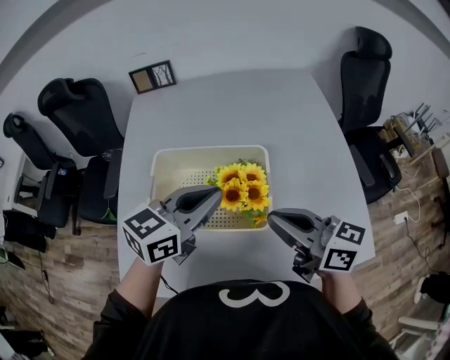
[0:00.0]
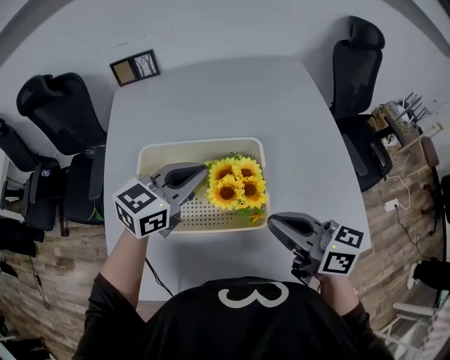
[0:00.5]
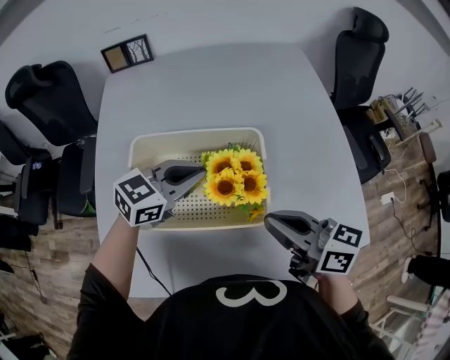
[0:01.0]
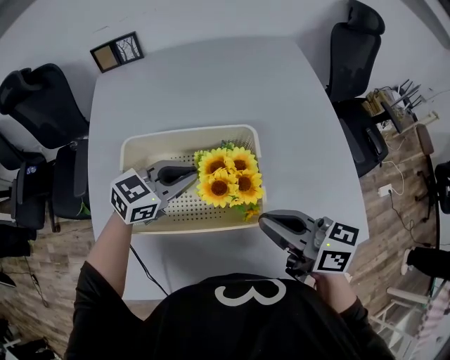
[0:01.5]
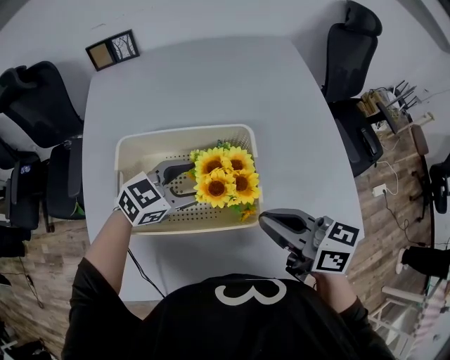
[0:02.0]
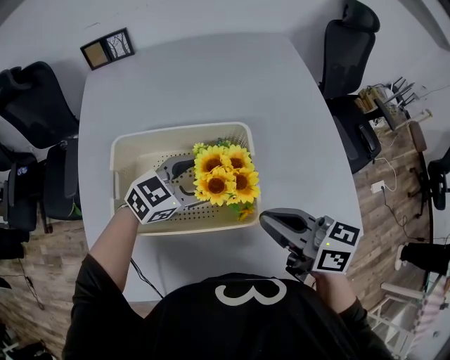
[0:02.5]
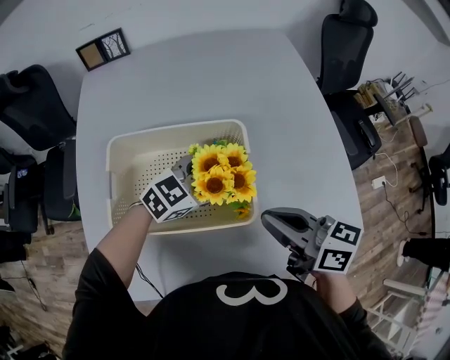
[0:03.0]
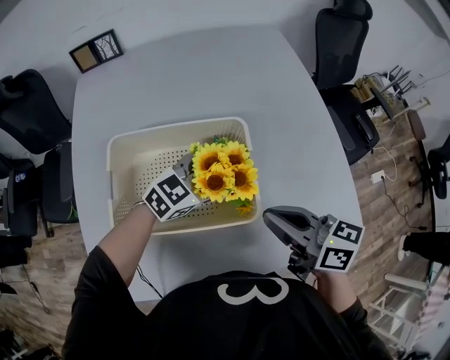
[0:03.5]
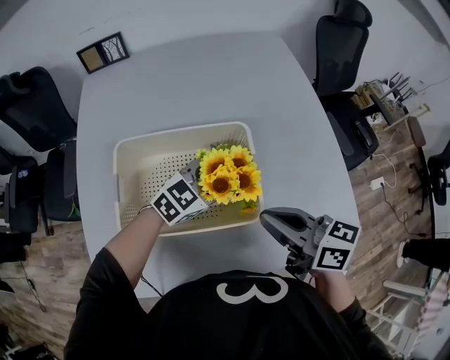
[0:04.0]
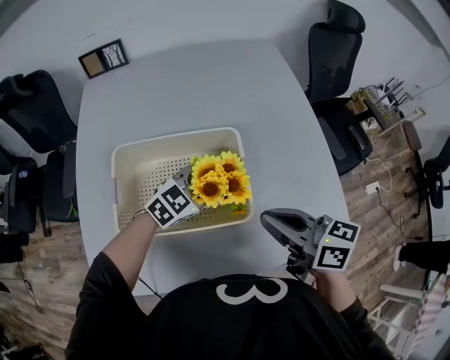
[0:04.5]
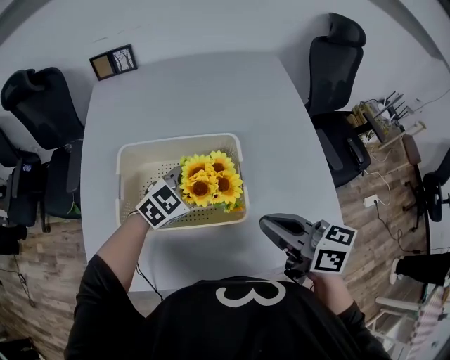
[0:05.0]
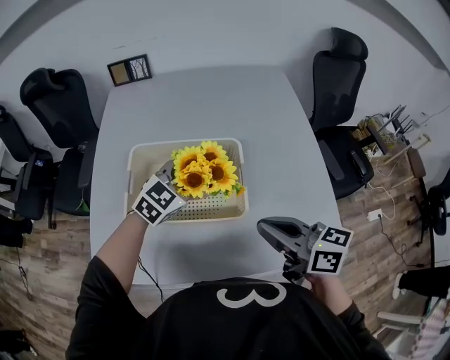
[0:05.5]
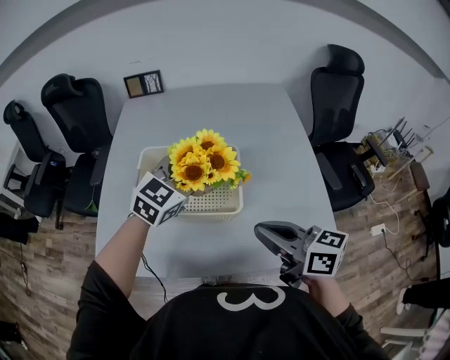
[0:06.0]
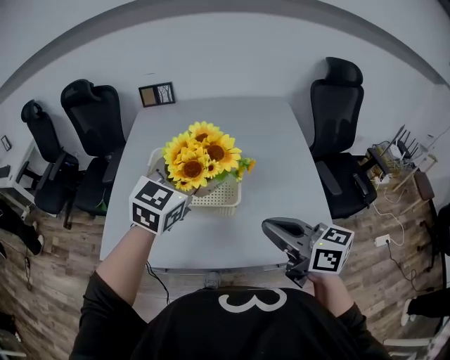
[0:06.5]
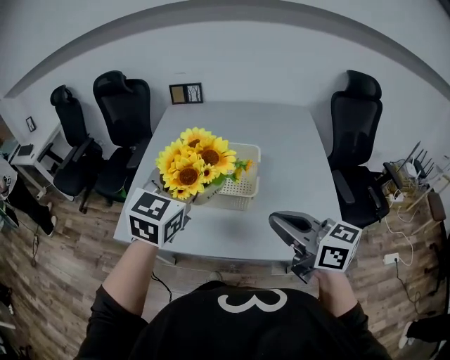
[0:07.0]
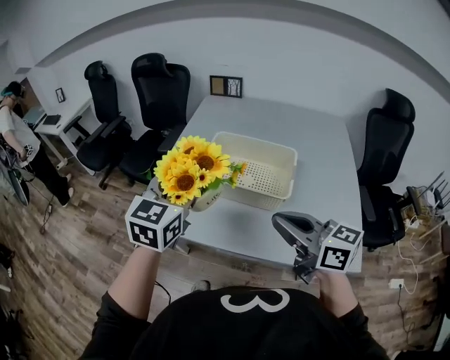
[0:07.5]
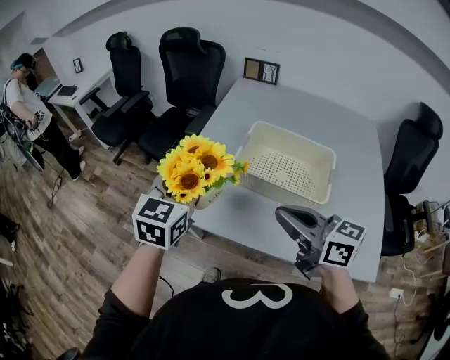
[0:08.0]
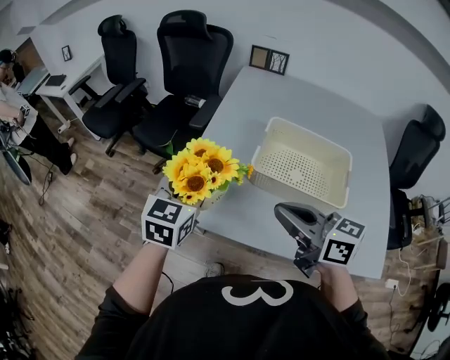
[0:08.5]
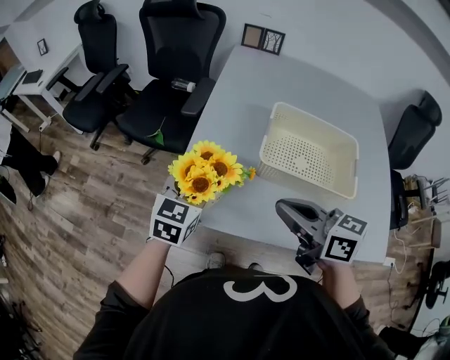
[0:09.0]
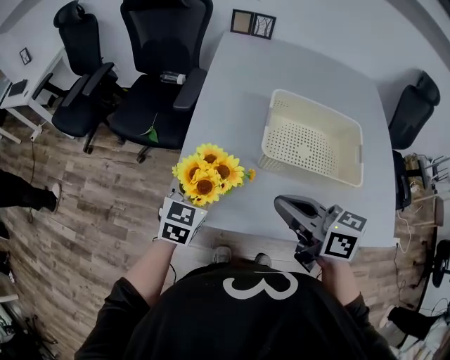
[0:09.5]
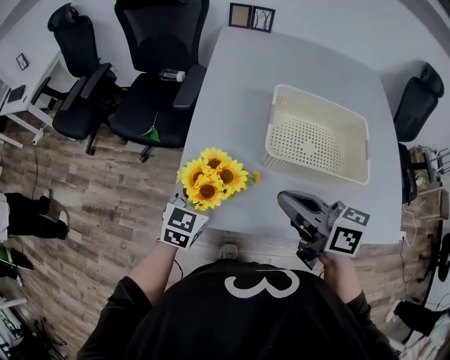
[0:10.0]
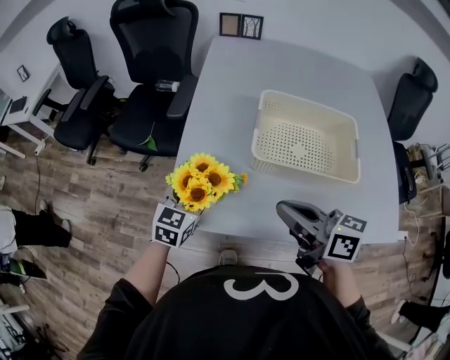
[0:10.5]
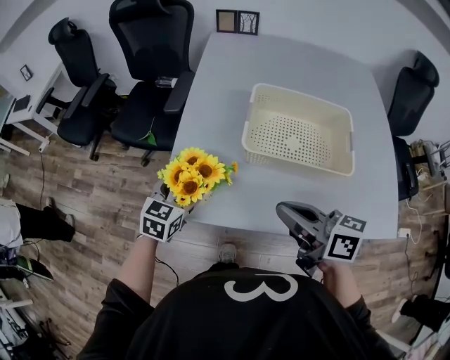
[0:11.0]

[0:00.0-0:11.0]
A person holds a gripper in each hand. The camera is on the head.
0:00.0 to 0:02.0: The left gripper is displaced downward by approximately 15 cm, swivels roughly 30 degrees, and opens, while the right gripper travels downward by approximately 5 cm.
0:02.0 to 0:03.5: The left gripper is displaced to the right by roughly 5 cm.
0:03.5 to 0:05.5: The left gripper travels upward by approximately 10 cm, rotates some 20 degrees, and closes up, while the right gripper is displaced upward and backward by approximately 10 cm.
0:05.5 to 0:07.5: The right gripper moves approximately 15 cm, and rotates some 20 degrees. The left gripper moves roughly 35 cm, and swivels approximately 50 degrees.
0:07.5 to 0:09.0: The left gripper heads downward, to the left and forward, covering roughly 30 cm; the right gripper moves to the left and forward, approximately 25 cm.
0:09.0 to 0:11.0: The left gripper shifts about 10 cm downward, and opens; the right gripper shifts by about 5 cm.

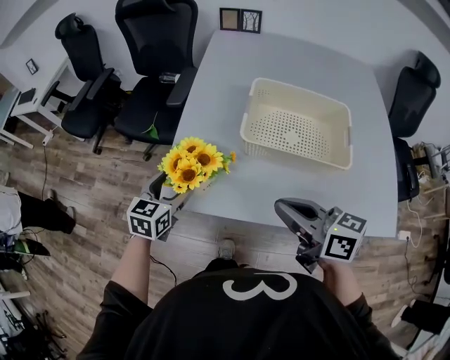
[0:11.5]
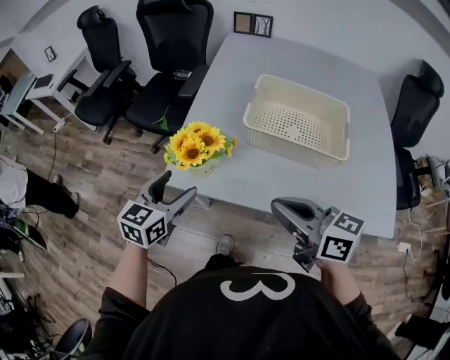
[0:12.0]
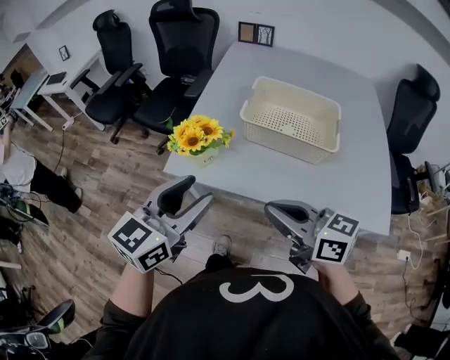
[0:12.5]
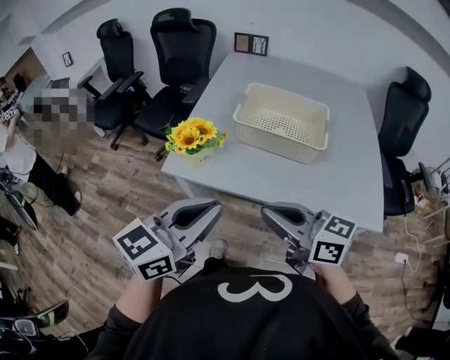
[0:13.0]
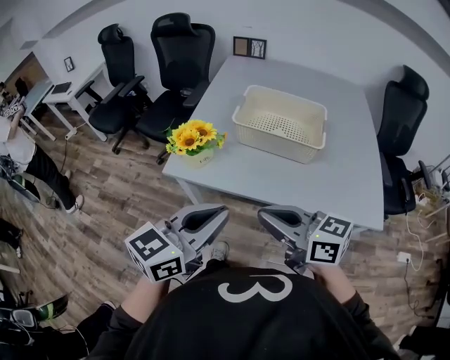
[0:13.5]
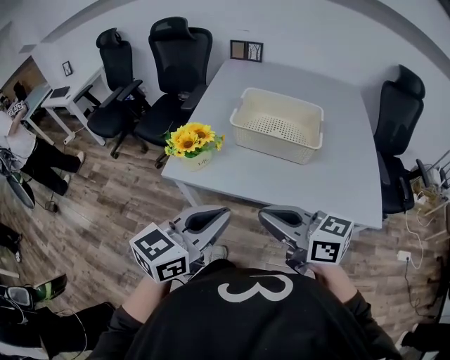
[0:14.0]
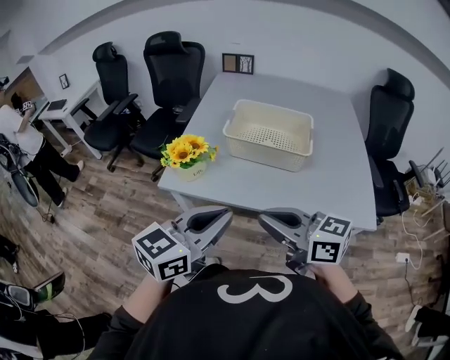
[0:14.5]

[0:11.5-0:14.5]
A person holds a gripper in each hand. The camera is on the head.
0:11.5 to 0:13.0: The right gripper travels backward by approximately 15 cm. The left gripper shifts some 40 cm backward, upward and to the right, changes its angle by some 30 degrees, and closes up.
0:13.0 to 0:14.5: There are only small adjustments of the grippers.

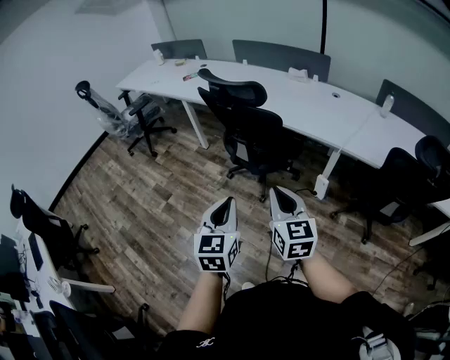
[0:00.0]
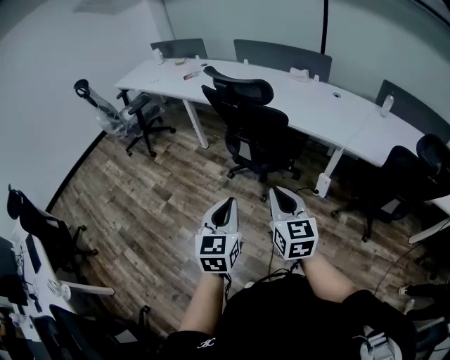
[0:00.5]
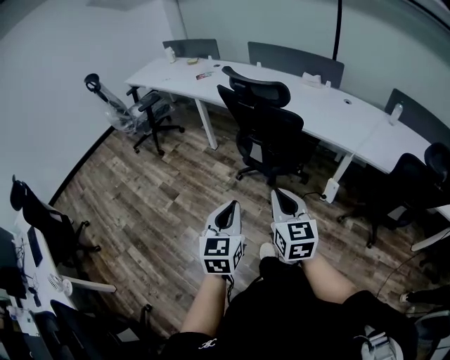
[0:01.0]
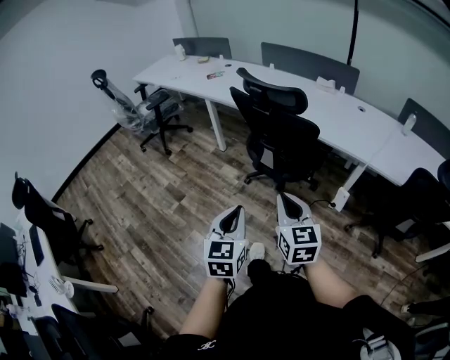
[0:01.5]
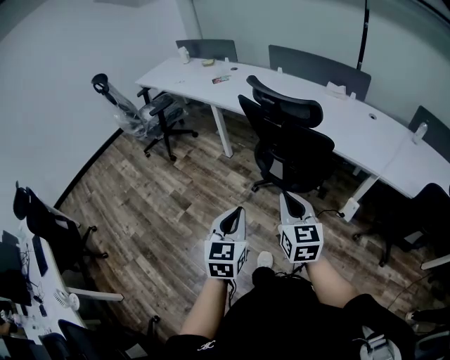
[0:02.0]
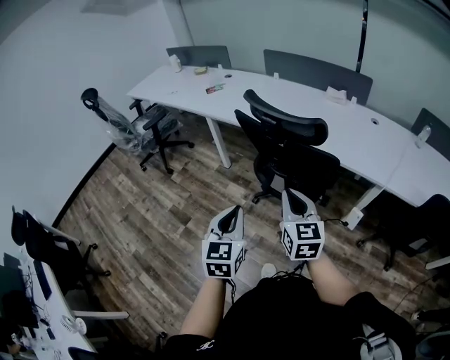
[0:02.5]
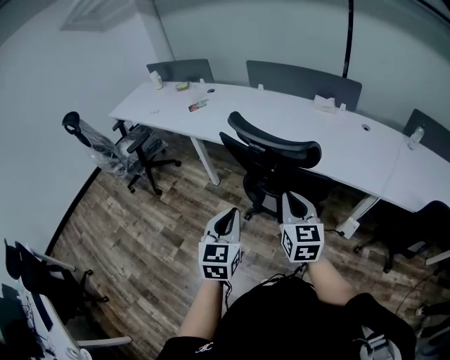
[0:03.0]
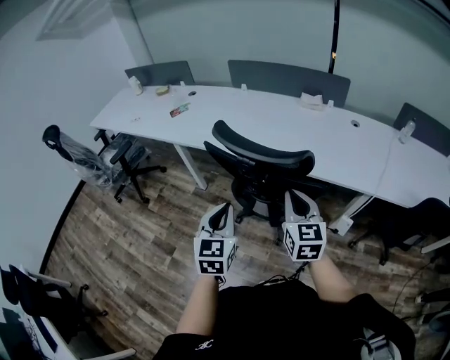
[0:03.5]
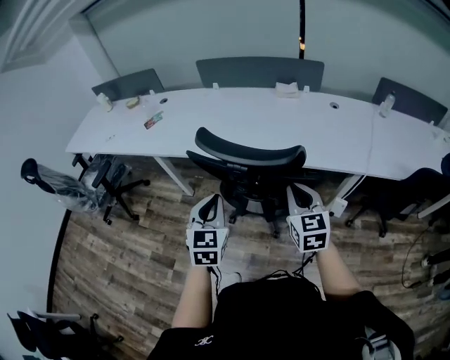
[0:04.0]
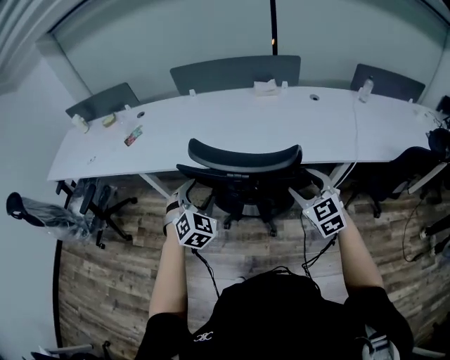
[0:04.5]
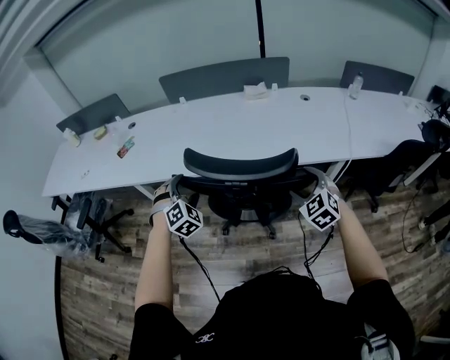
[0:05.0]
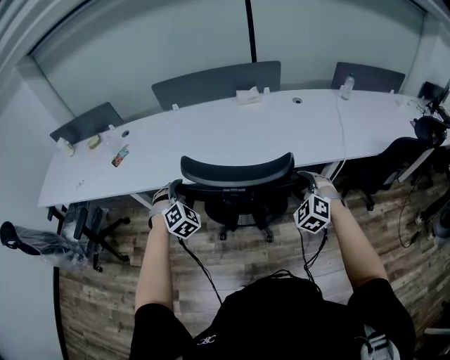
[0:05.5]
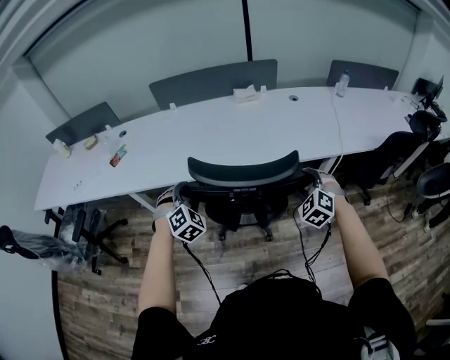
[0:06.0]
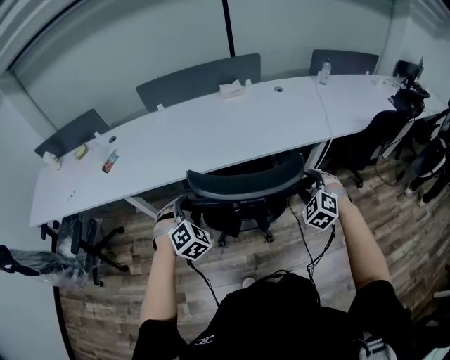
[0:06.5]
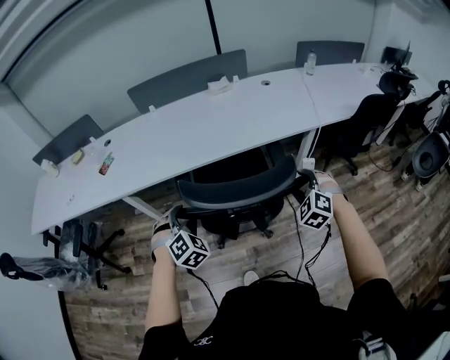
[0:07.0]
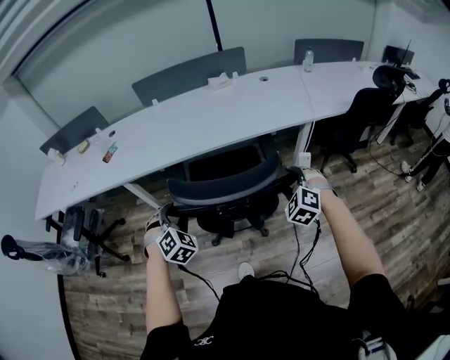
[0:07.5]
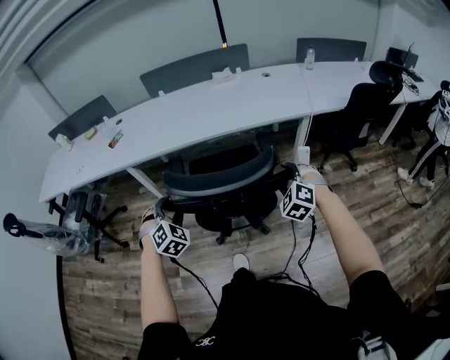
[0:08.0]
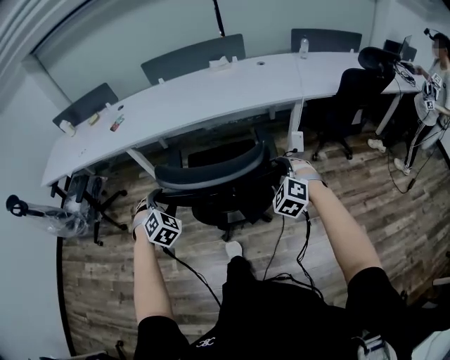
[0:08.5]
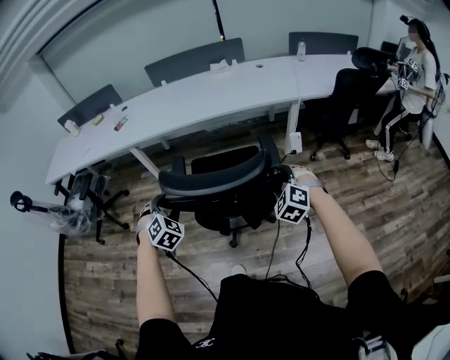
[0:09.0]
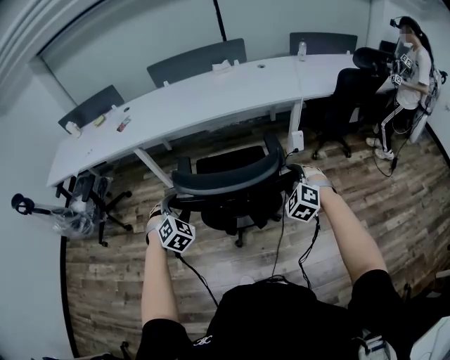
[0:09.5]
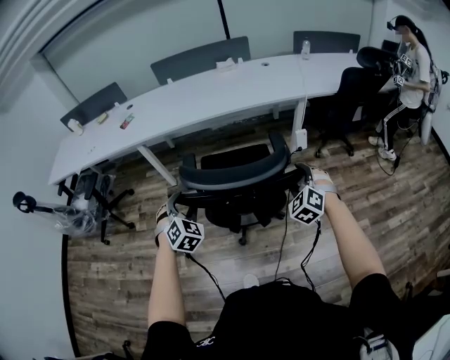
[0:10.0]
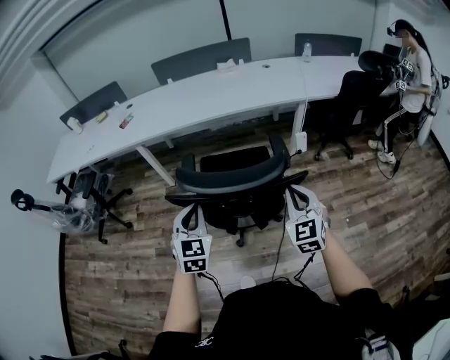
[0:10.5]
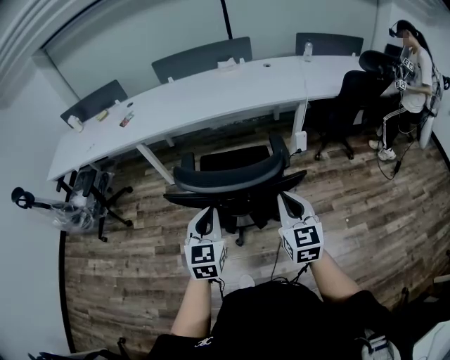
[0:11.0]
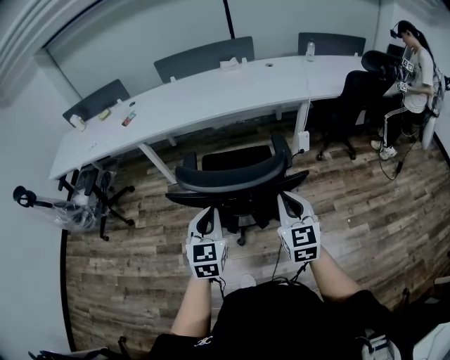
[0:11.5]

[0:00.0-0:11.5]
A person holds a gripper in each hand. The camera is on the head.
0:00.0 to 0:02.0: The two grippers go about 20 cm to the left and forward.
0:02.0 to 0:04.0: Both grippers travel together forward, some 35 cm. The left gripper changes its angle by roughly 20 degrees. Meanwhile the right gripper rotates about 20 degrees.
0:04.0 to 0:06.0: The right gripper travels downward by some 5 cm, rotates around the line of its fingers by approximately 40 degrees, counterclockwise from behind, and opens up; the left gripper shifts some 20 cm forward, to the left and downward, rolls clockwise, seen from behind, by approximately 50 degrees, and opens up.
0:06.0 to 0:07.5: Both grippers travel together backward, about 20 cm.
0:07.5 to 0:09.5: Both grippers move backward, some 25 cm.
0:09.5 to 0:11.5: The right gripper goes about 15 cm backward, upward and to the left, rolls clockwise, seen from behind, by some 50 degrees, and closes up; the left gripper travels to the right, backward and upward by about 15 cm, rolls counterclockwise, seen from behind, by some 40 degrees, and closes up.

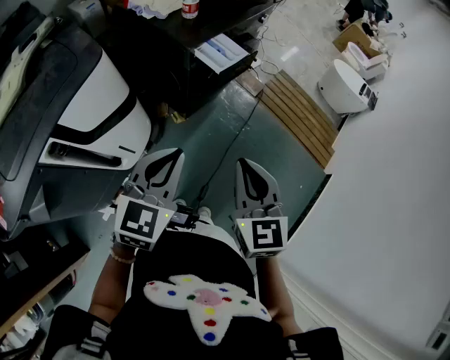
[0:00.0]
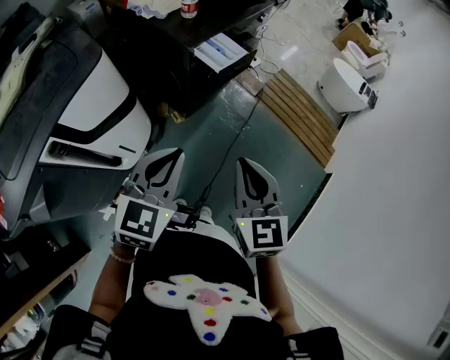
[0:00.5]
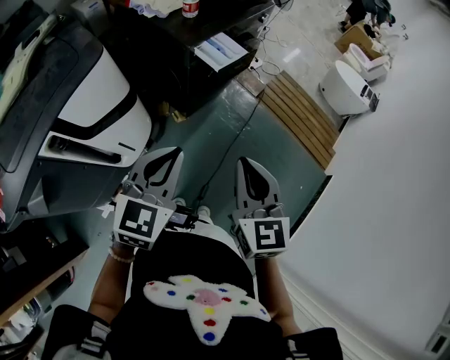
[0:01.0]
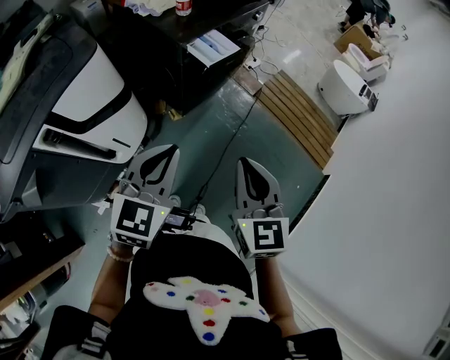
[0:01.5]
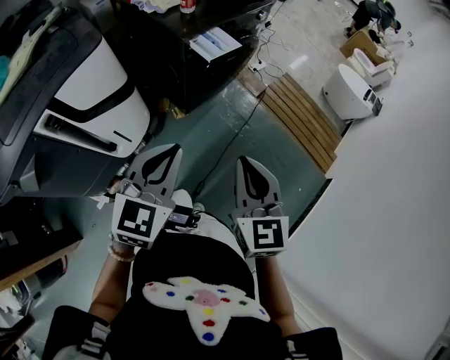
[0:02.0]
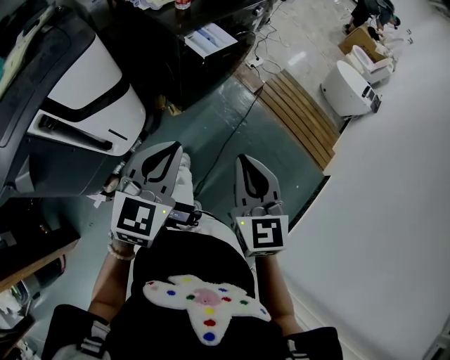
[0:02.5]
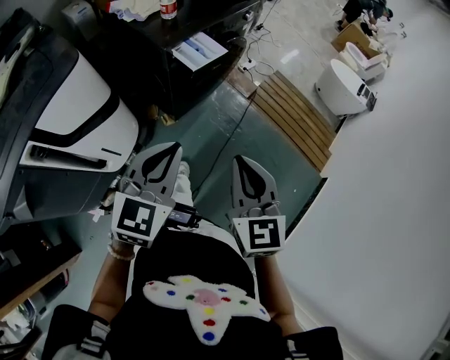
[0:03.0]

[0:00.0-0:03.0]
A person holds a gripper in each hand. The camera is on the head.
0:00.0 to 0:01.5: The right gripper shifts some 5 cm to the right.
0:01.5 to 0:03.0: The right gripper changes place by about 5 cm. The left gripper changes place by about 5 cm.
